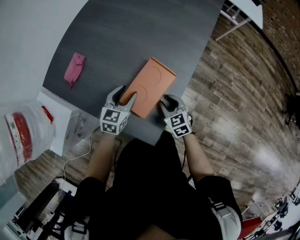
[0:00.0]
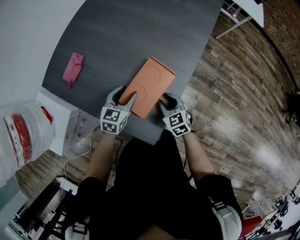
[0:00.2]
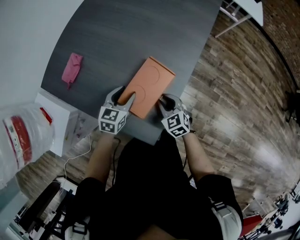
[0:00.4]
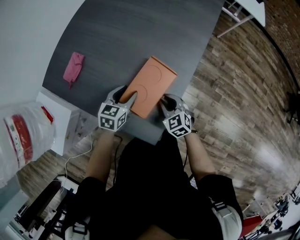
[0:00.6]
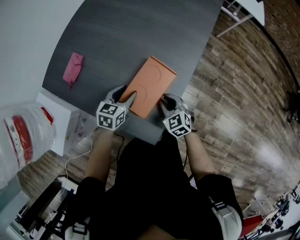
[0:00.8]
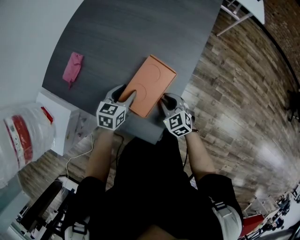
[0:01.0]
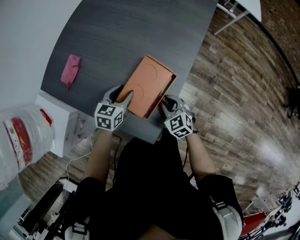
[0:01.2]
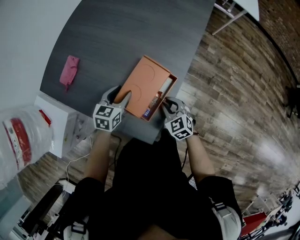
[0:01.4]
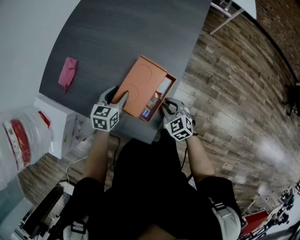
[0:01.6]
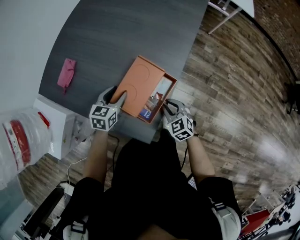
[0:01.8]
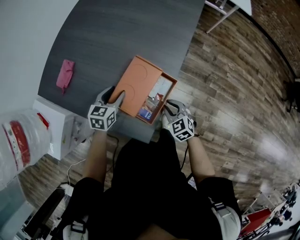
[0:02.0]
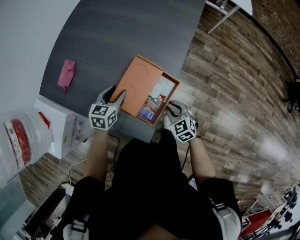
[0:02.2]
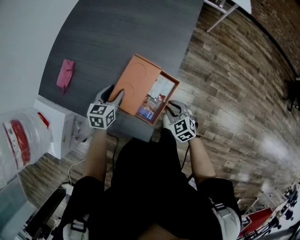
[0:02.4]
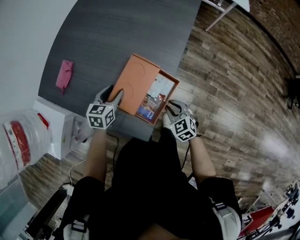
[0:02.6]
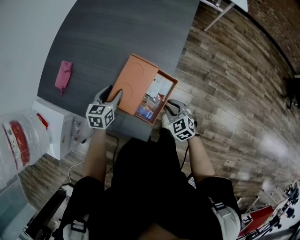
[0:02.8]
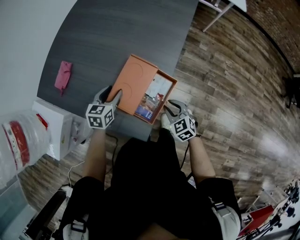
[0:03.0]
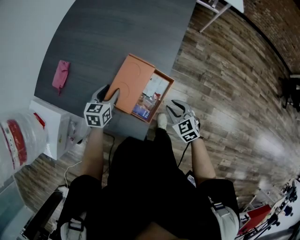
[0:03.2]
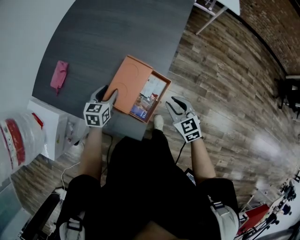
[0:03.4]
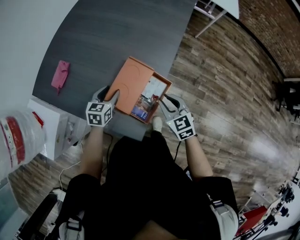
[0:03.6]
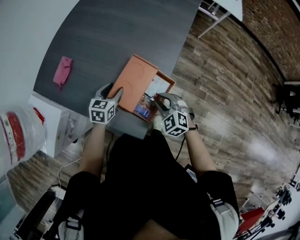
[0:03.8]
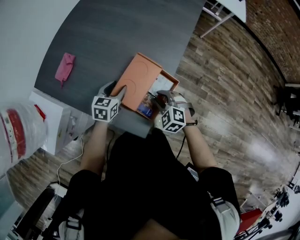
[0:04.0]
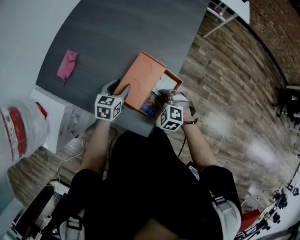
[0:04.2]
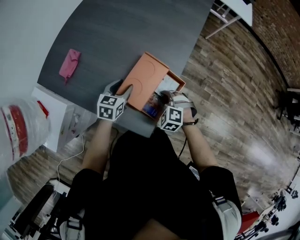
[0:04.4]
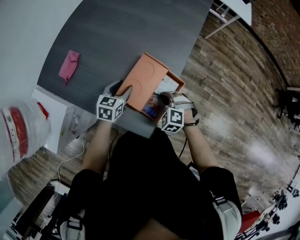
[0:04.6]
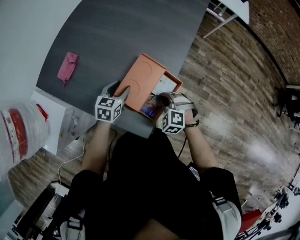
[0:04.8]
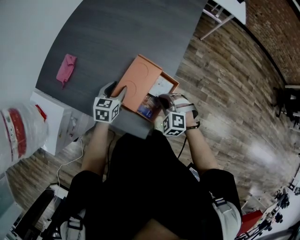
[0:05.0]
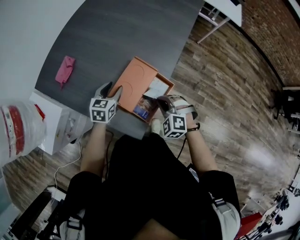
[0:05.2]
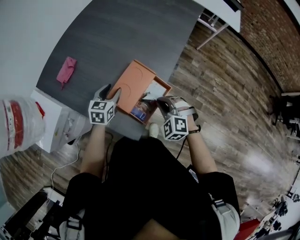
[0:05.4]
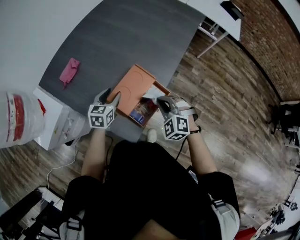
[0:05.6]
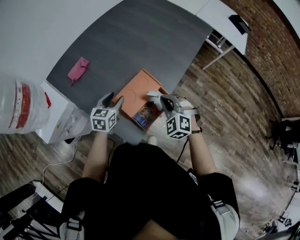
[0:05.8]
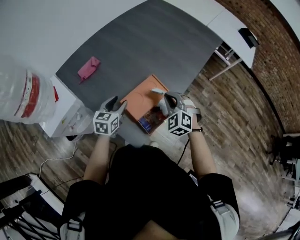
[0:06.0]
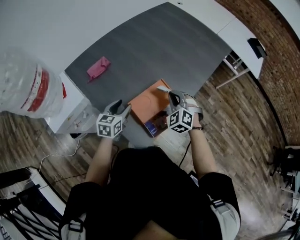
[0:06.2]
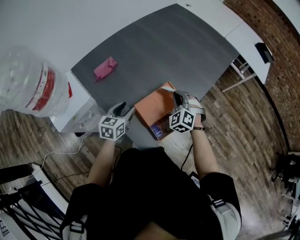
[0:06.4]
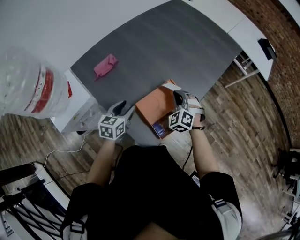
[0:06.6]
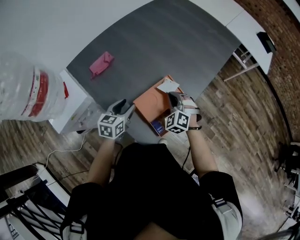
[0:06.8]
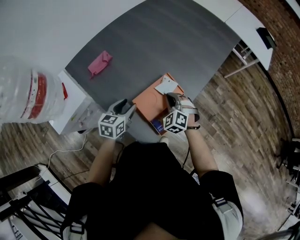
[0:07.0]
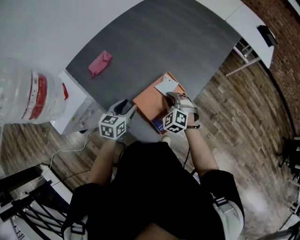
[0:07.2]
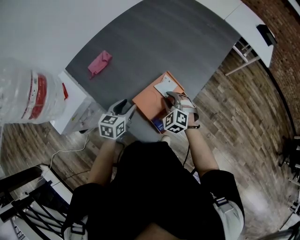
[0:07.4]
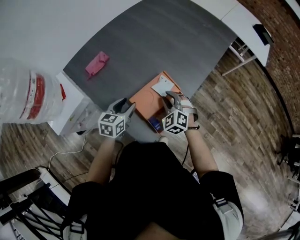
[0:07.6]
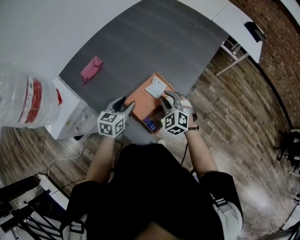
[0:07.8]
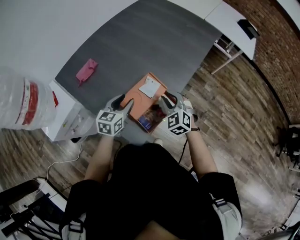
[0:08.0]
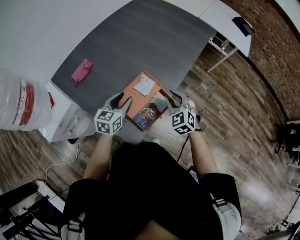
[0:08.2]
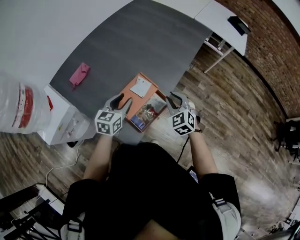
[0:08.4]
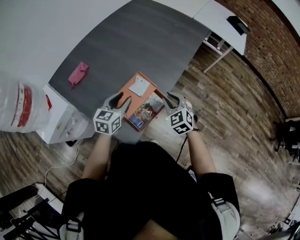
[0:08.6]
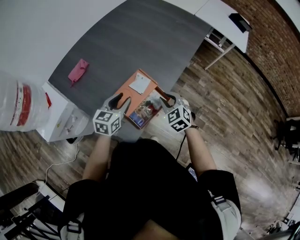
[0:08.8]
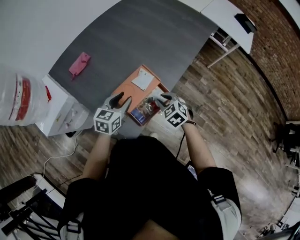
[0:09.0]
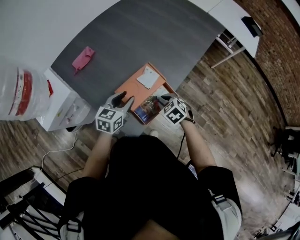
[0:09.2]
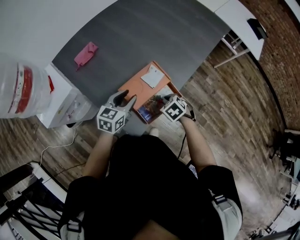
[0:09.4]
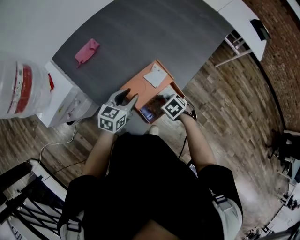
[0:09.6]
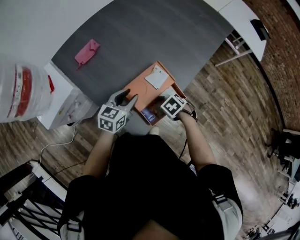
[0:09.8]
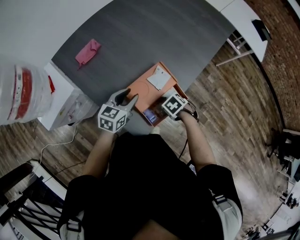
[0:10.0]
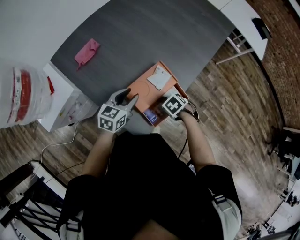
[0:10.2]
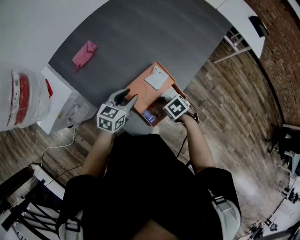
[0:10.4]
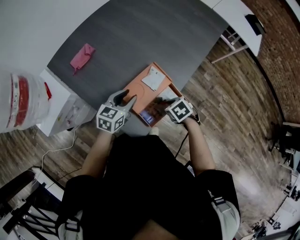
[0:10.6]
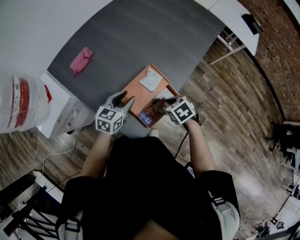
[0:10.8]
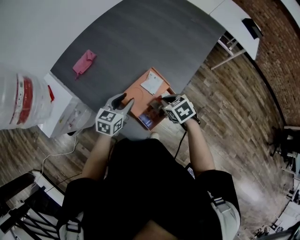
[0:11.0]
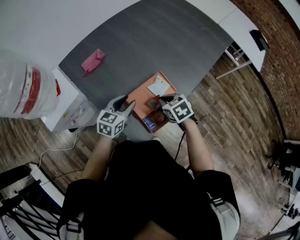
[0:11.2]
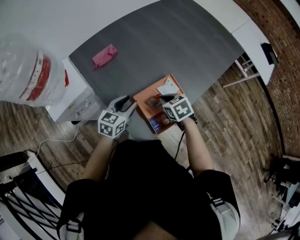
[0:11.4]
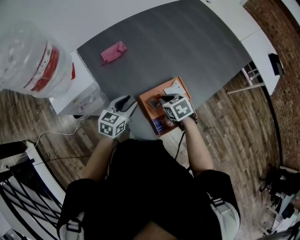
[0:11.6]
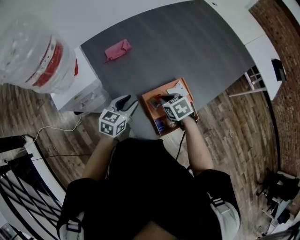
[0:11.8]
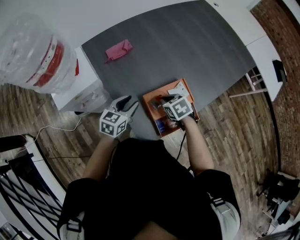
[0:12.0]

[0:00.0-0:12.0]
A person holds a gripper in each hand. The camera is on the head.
0:00.0 to 0:01.6: The grippers make only small movements.
0:01.6 to 0:03.0: The right gripper changes place by some 5 cm.
0:03.0 to 0:04.4: The right gripper is displaced to the left by approximately 5 cm, reaches about 10 cm upward, then returns, and swivels roughly 40 degrees.
0:04.4 to 0:06.0: The right gripper is displaced upward and forward by some 15 cm, and swivels some 20 degrees, while the left gripper heads upward, covering some 5 cm, and changes its angle by some 20 degrees.
0:06.0 to 0:07.6: The right gripper is displaced downward by about 5 cm, and opens.
0:07.6 to 0:09.0: Both grippers travel together to the right, roughly 5 cm. The right gripper changes its angle by about 30 degrees.
0:09.0 to 0:10.4: The right gripper travels downward by roughly 10 cm, and changes its angle by some 40 degrees.
0:10.4 to 0:12.0: The right gripper changes place by about 15 cm, and changes its angle by some 20 degrees. Meanwhile the left gripper changes place by about 10 cm.

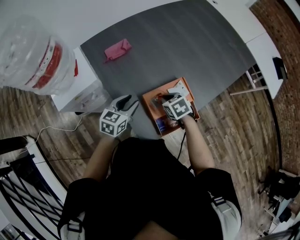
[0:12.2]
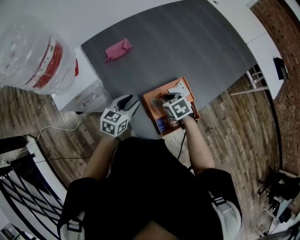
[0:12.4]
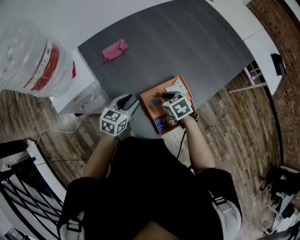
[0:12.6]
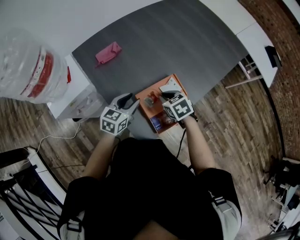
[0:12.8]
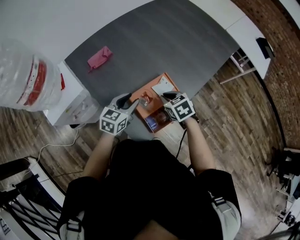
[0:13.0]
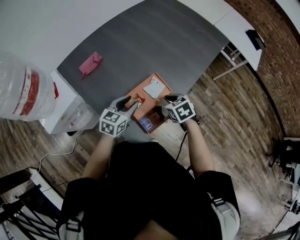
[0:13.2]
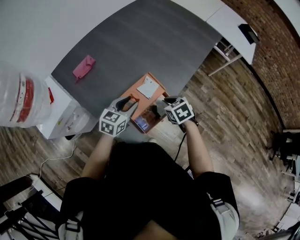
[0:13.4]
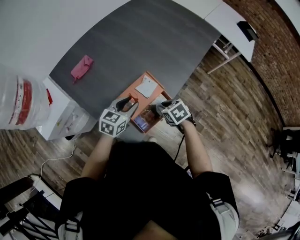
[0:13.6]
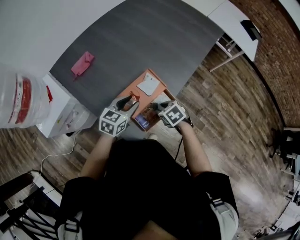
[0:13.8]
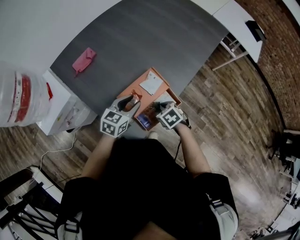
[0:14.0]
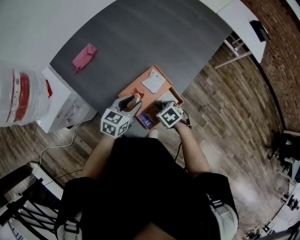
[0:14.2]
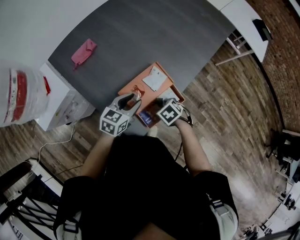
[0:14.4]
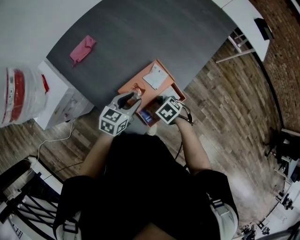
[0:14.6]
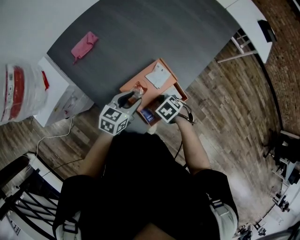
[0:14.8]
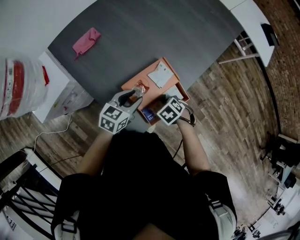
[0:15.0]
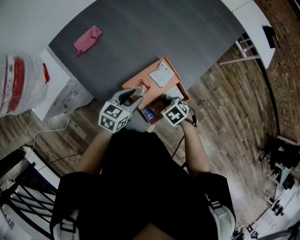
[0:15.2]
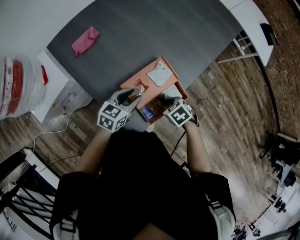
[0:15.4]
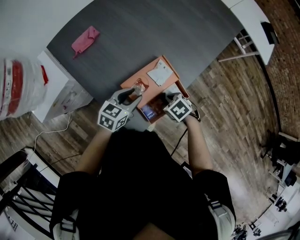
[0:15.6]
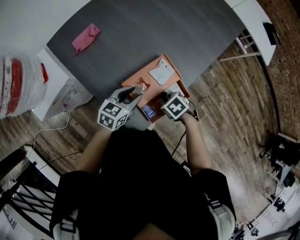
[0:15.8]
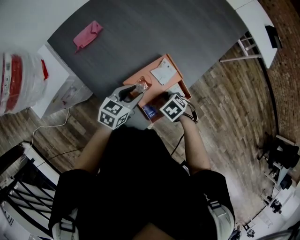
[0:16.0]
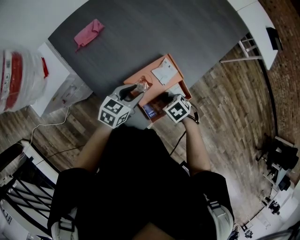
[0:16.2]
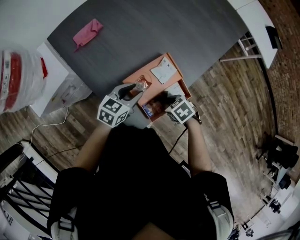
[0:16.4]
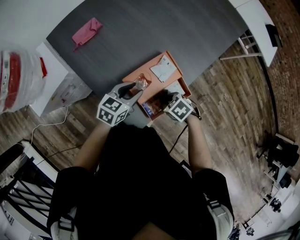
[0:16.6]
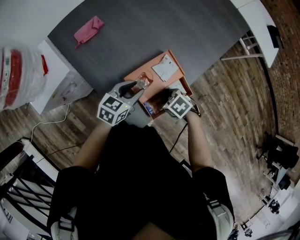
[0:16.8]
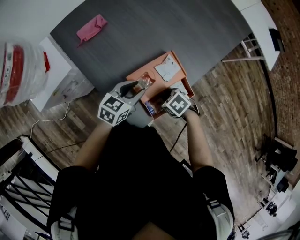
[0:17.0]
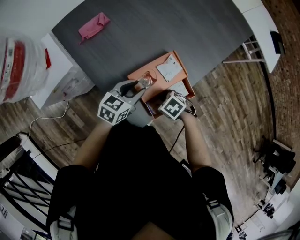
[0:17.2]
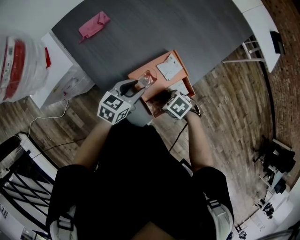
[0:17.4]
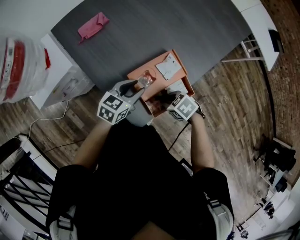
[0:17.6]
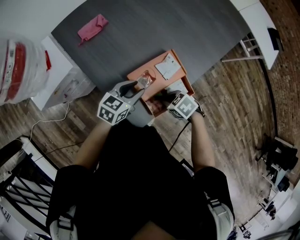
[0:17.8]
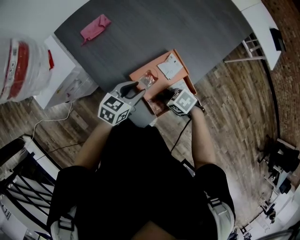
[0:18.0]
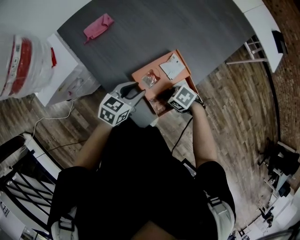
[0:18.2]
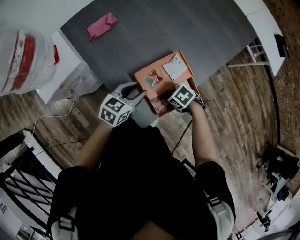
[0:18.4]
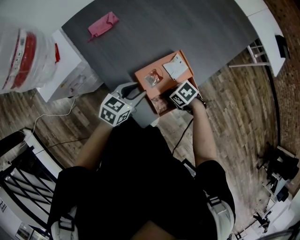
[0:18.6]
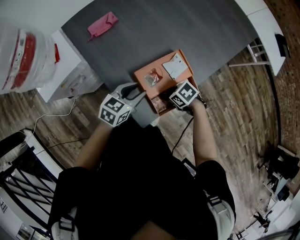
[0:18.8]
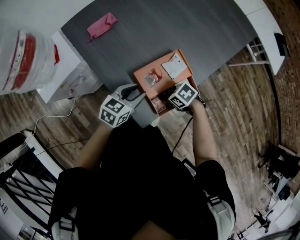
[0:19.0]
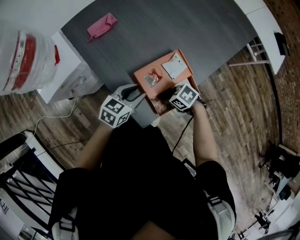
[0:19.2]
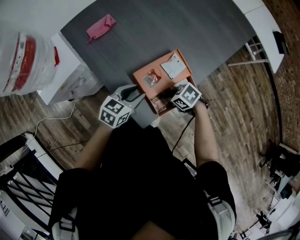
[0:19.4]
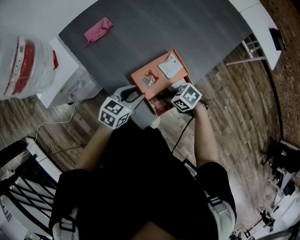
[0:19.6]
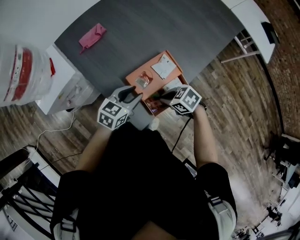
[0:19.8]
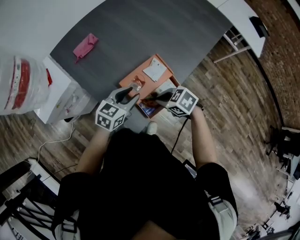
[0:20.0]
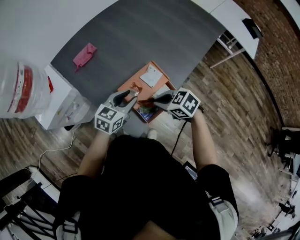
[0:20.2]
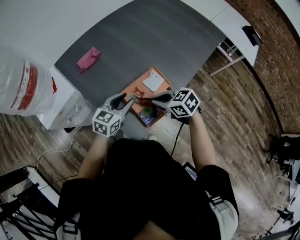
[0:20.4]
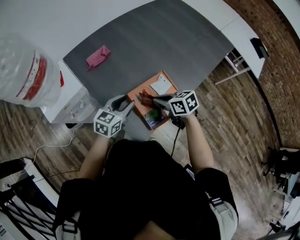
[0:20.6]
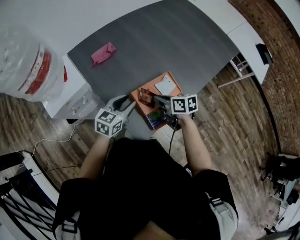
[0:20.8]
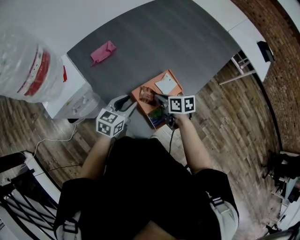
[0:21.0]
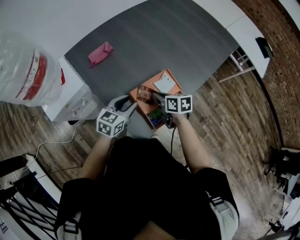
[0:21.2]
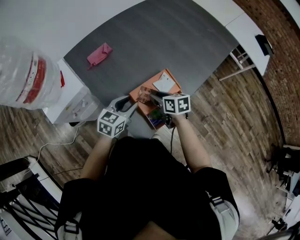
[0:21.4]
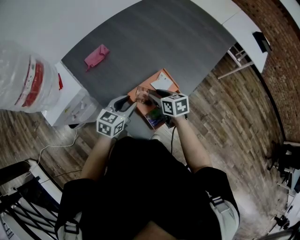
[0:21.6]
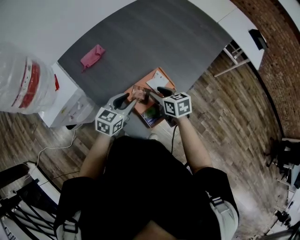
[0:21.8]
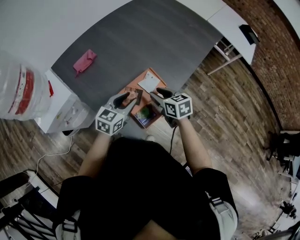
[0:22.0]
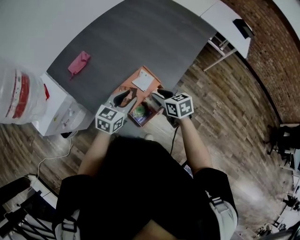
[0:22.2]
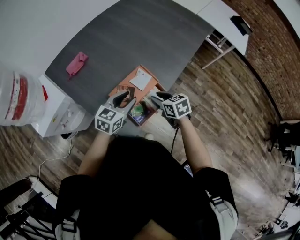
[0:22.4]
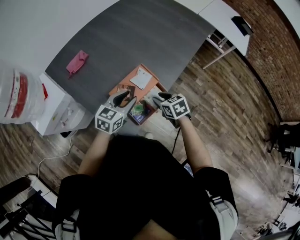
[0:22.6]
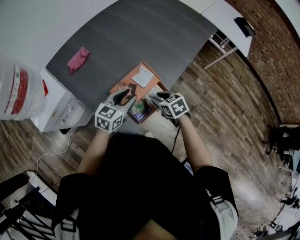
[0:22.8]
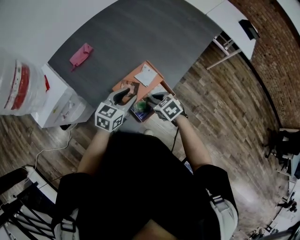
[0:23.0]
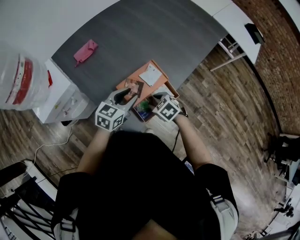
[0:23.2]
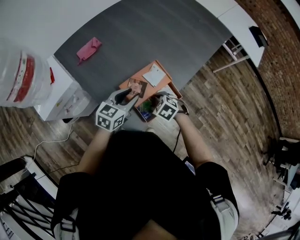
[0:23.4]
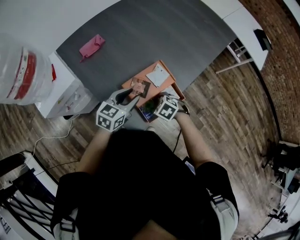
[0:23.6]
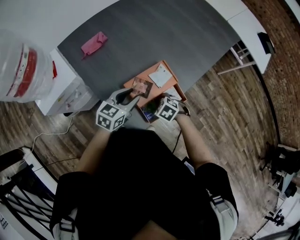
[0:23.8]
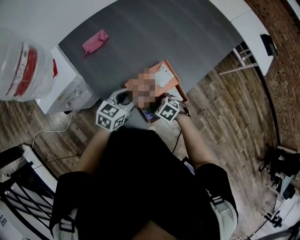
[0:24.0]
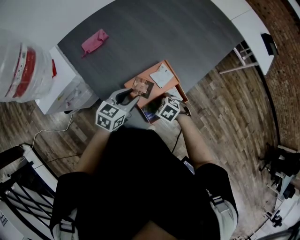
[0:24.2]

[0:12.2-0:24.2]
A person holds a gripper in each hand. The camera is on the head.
0:12.2 to 0:13.8: The left gripper goes roughly 10 cm to the right, and changes its angle by roughly 20 degrees. The right gripper shifts roughly 15 cm to the right and backward, and opens up.
0:13.8 to 0:15.2: The right gripper closes its fingers.
0:15.2 to 0:16.6: The right gripper opens, then closes once more.
0:16.6 to 0:18.2: The right gripper opens and closes again.
0:18.2 to 0:19.8: The right gripper shifts approximately 5 cm upward, and opens, then closes once more.
0:19.8 to 0:21.2: The right gripper goes upward and returns, about 10 cm each way, and rotates about 50 degrees.
0:21.2 to 0:22.6: Both grippers travel together to the right, some 10 cm. The right gripper rotates about 20 degrees, and opens.
0:22.6 to 0:24.2: The left gripper changes place by about 5 cm. The right gripper travels downward by approximately 10 cm, turns by roughly 50 degrees, and opens its fingers.
